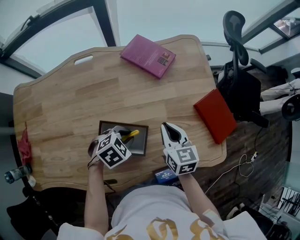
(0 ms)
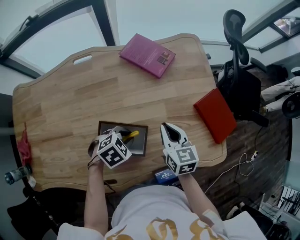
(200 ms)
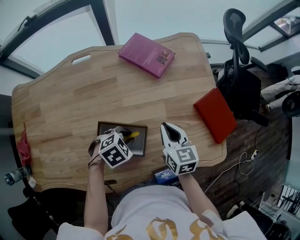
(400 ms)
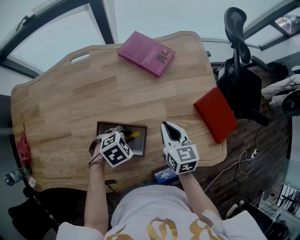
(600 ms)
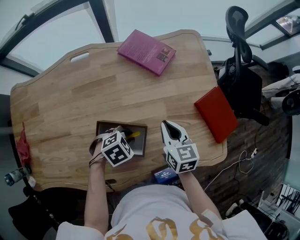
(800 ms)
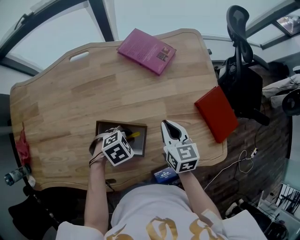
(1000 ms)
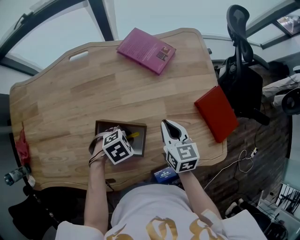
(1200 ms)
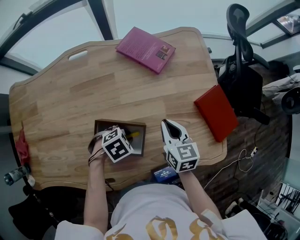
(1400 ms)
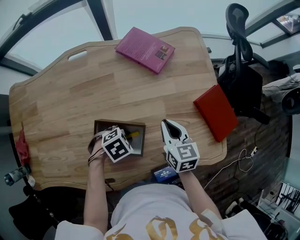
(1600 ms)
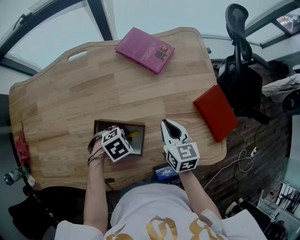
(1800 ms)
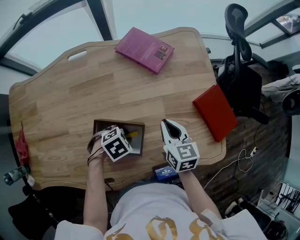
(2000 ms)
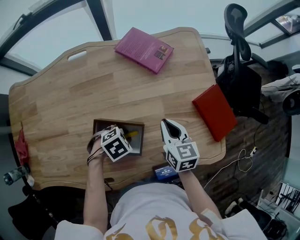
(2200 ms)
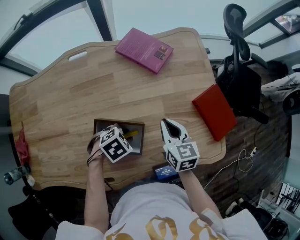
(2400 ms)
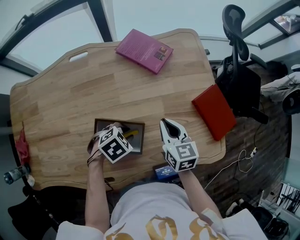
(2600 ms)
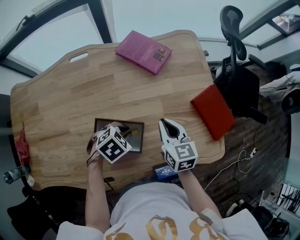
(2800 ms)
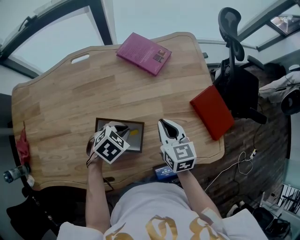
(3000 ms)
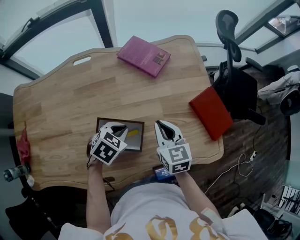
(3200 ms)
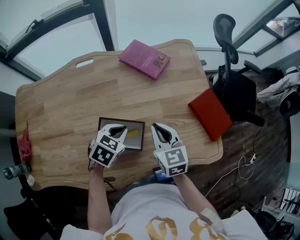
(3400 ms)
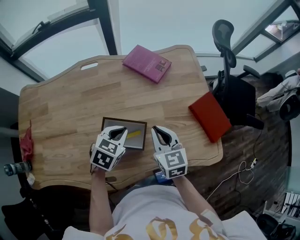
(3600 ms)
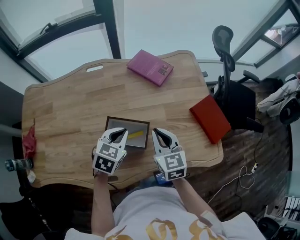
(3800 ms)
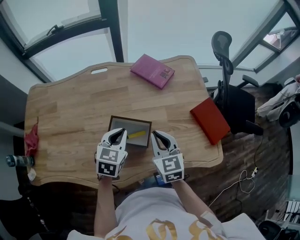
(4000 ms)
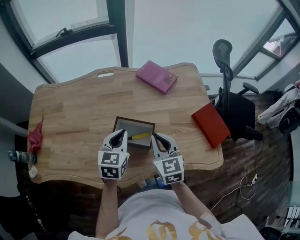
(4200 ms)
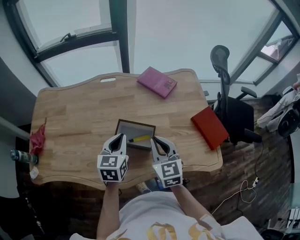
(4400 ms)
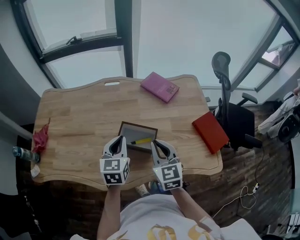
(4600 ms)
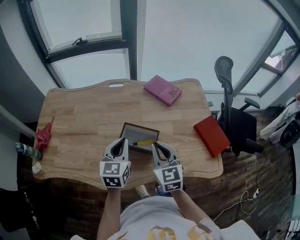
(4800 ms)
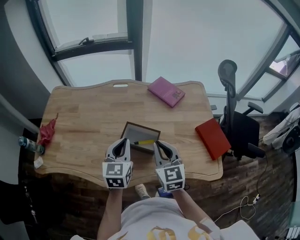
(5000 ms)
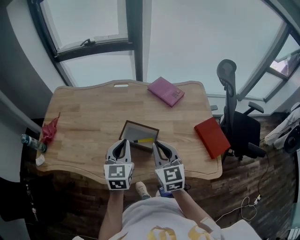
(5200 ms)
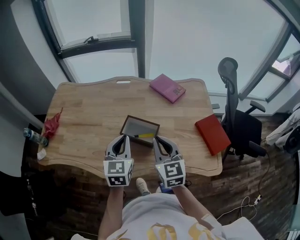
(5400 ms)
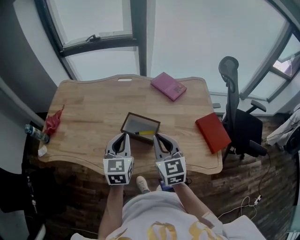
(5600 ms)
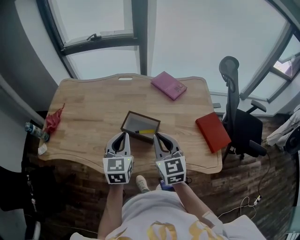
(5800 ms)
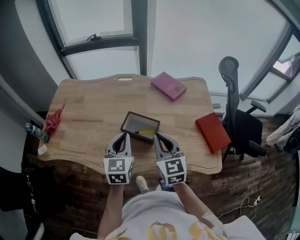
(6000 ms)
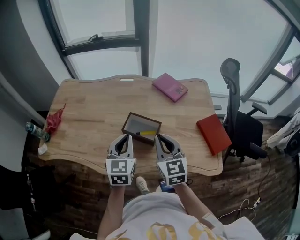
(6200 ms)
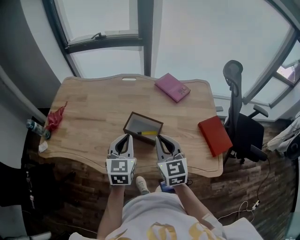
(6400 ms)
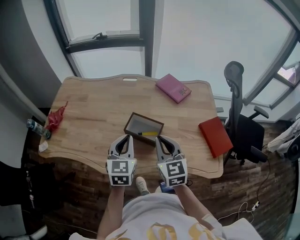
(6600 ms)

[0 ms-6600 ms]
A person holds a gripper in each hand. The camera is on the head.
0 ms to 1600 ms: There are only small adjustments of the grippers.
1600 ms to 3200 ms: The right gripper ends up approximately 5 cm from where it was; the left gripper is displaced upward by some 5 cm, and swivels approximately 30 degrees.
3200 ms to 5000 ms: The left gripper heads upward, covering some 20 cm, and tilts its fingers roughly 40 degrees upward. Meanwhile the right gripper shifts by approximately 20 cm, and turns by roughly 20 degrees.
5000 ms to 6600 ms: The left gripper heads backward, covering roughly 5 cm.

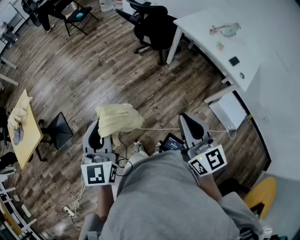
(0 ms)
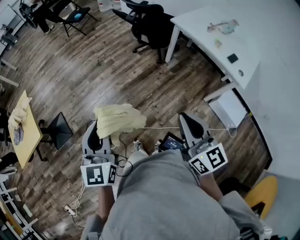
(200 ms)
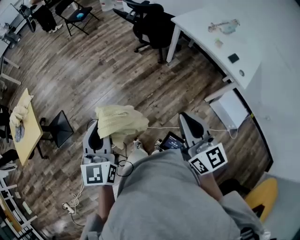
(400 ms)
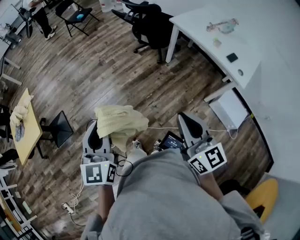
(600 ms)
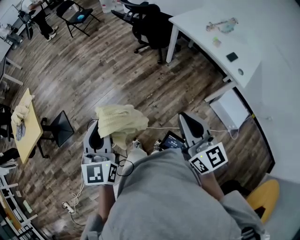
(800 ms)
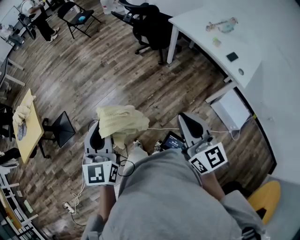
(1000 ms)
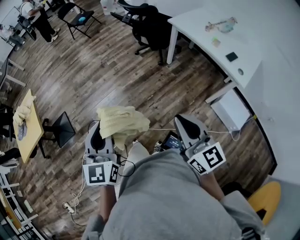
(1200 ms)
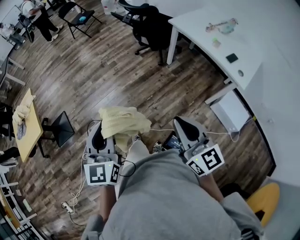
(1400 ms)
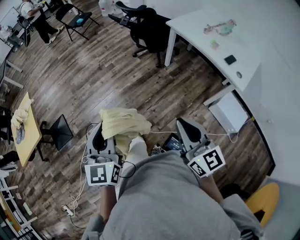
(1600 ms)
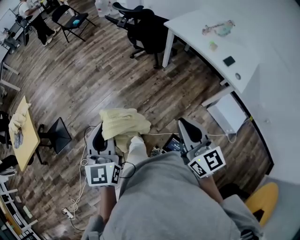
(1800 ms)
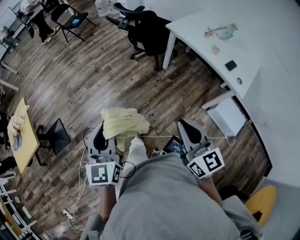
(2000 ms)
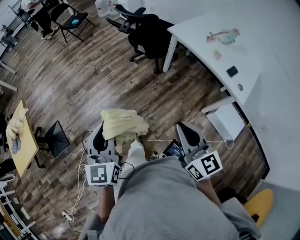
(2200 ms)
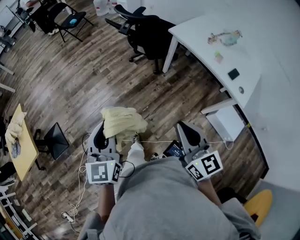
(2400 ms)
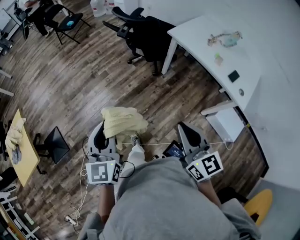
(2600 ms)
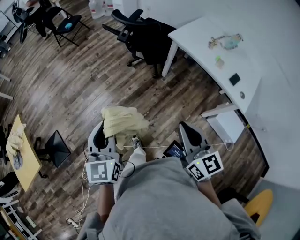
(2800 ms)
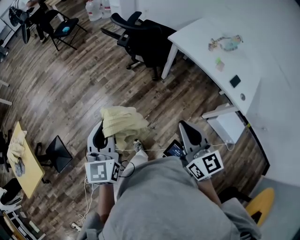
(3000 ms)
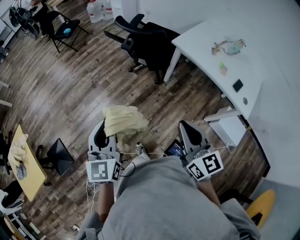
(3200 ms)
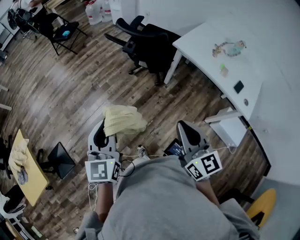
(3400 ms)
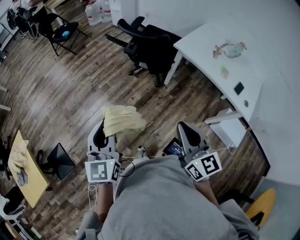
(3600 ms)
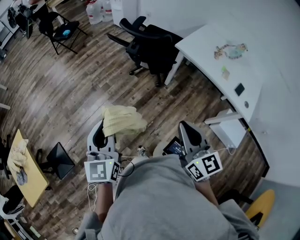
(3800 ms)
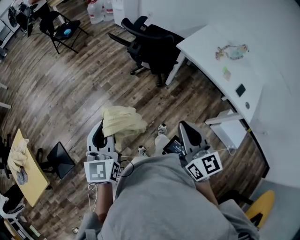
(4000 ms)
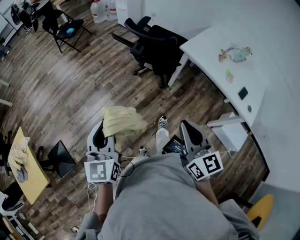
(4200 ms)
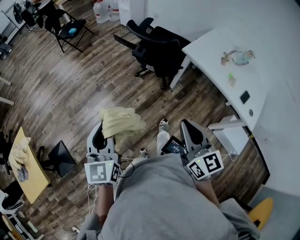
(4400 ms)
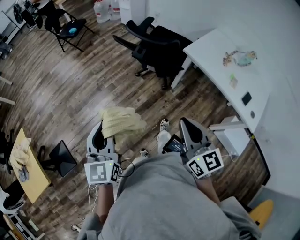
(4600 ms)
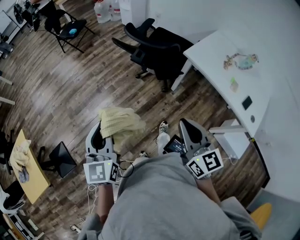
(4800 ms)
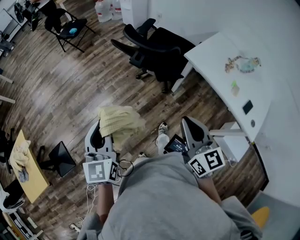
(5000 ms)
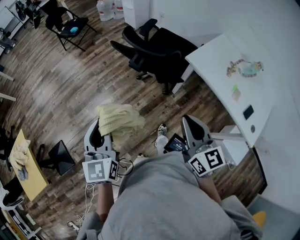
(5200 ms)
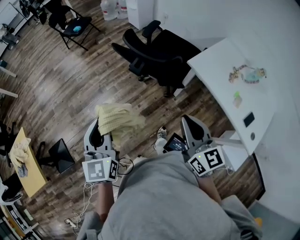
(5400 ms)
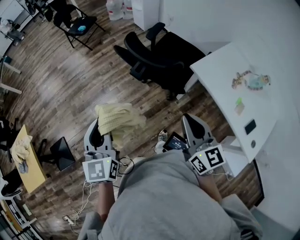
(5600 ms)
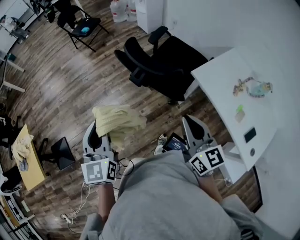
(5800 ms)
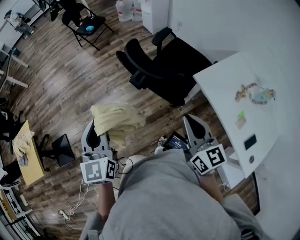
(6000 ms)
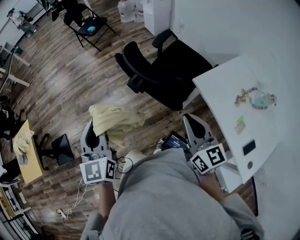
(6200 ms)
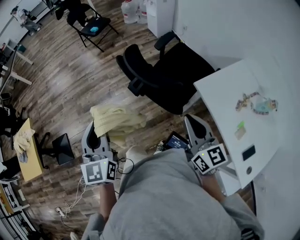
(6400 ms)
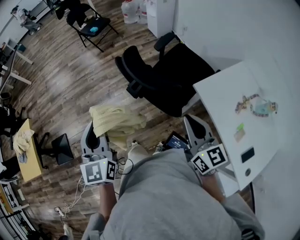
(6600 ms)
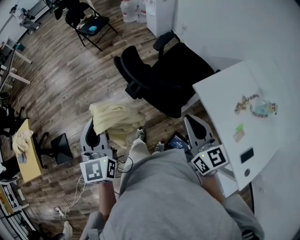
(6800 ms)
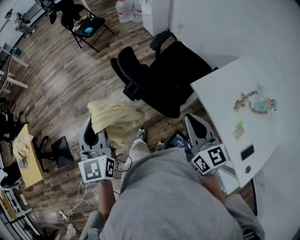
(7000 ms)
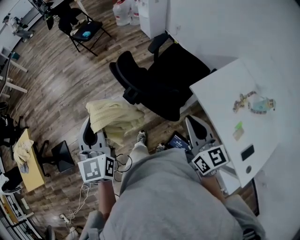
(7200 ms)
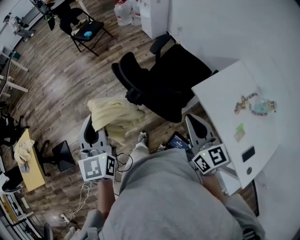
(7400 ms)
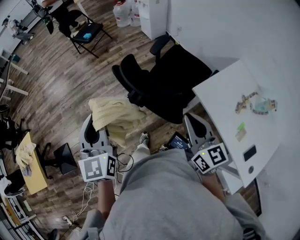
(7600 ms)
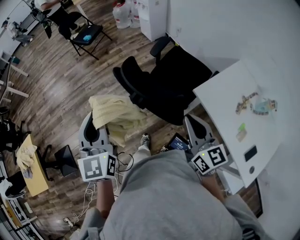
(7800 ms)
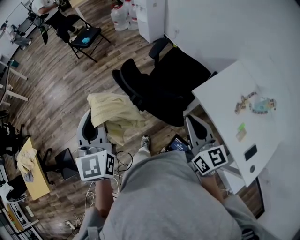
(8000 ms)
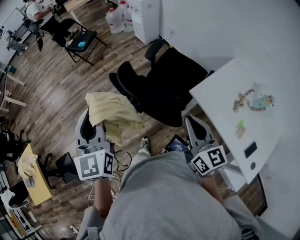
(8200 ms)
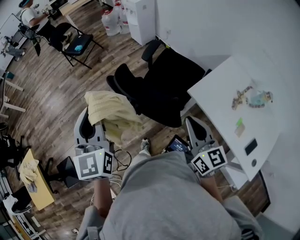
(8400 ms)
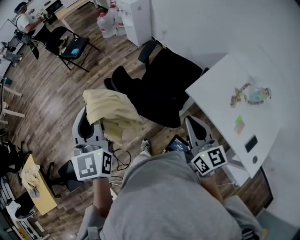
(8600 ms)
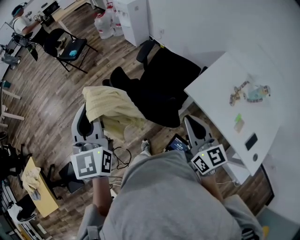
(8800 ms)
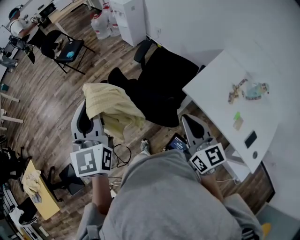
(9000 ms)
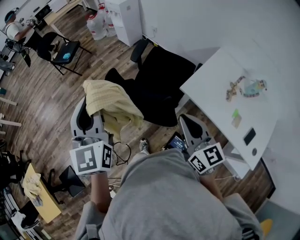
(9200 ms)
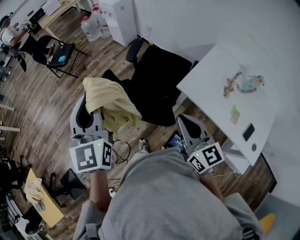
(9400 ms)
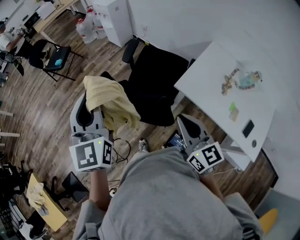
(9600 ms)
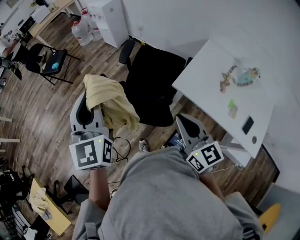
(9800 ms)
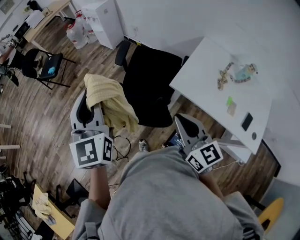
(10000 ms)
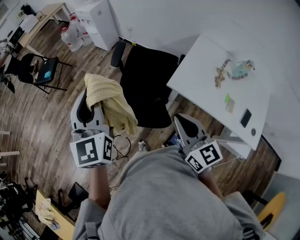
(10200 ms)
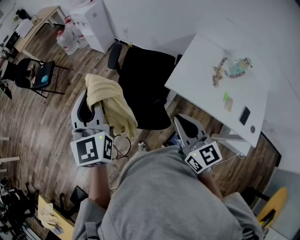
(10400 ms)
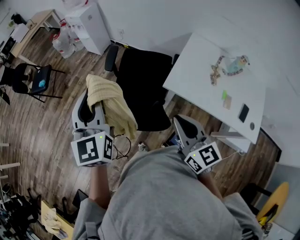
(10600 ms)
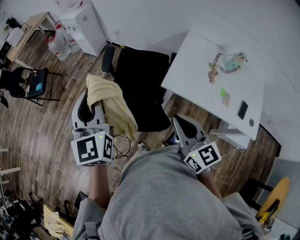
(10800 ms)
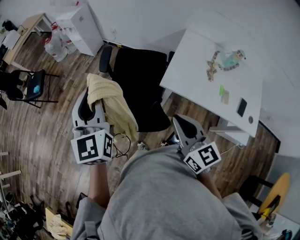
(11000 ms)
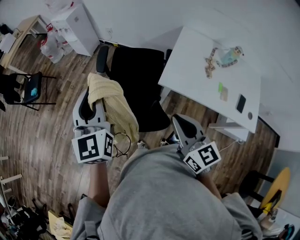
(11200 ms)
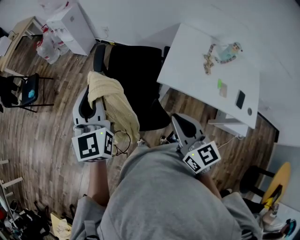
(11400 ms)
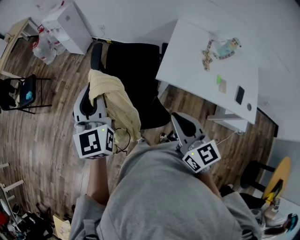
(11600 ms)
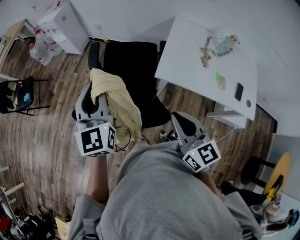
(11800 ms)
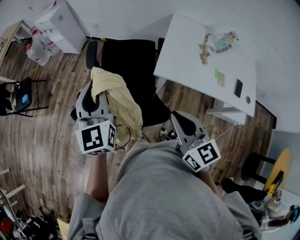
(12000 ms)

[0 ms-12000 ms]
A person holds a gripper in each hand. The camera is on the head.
0 ms to 1600 ms: The grippers both shift to the right by roughly 10 cm.
1600 ms to 3000 ms: Both grippers travel together forward, some 25 cm.
3000 ms to 4400 ms: The grippers both shift forward and to the left by approximately 10 cm.
4400 ms to 6000 ms: Both grippers move forward and to the right, roughly 25 cm.
6000 ms to 7600 ms: The left gripper heads forward and to the right, covering approximately 10 cm; the right gripper is displaced forward by roughly 10 cm.
7600 ms to 9000 ms: The left gripper heads forward and upward, covering about 10 cm.
9000 ms to 10400 ms: The left gripper is displaced forward and to the right by about 15 cm.
10400 ms to 12000 ms: The left gripper heads forward and downward, covering roughly 10 cm.

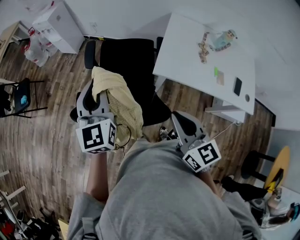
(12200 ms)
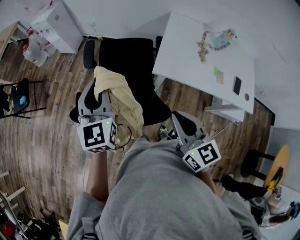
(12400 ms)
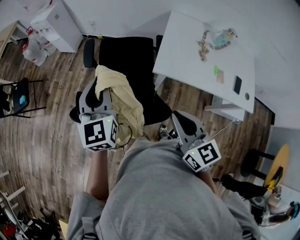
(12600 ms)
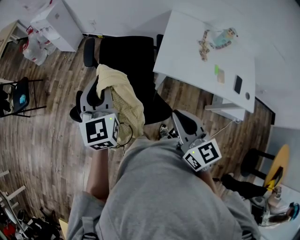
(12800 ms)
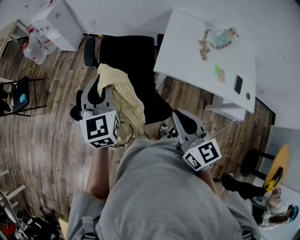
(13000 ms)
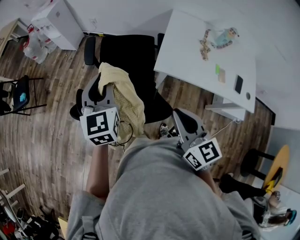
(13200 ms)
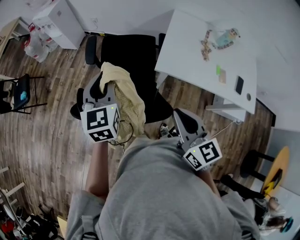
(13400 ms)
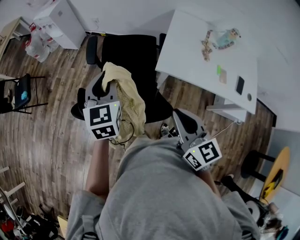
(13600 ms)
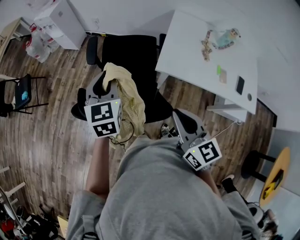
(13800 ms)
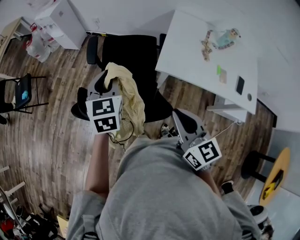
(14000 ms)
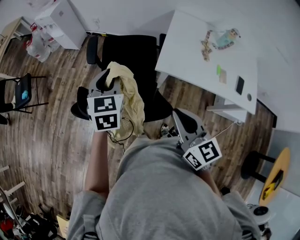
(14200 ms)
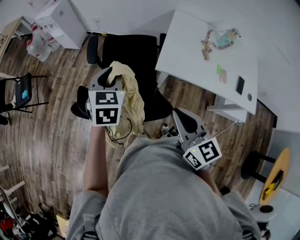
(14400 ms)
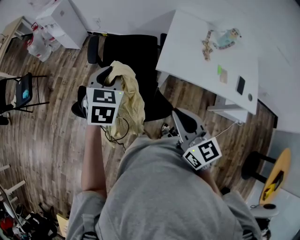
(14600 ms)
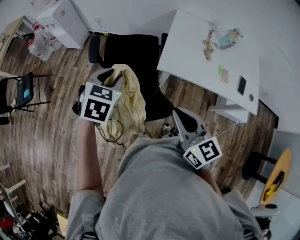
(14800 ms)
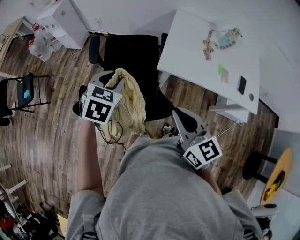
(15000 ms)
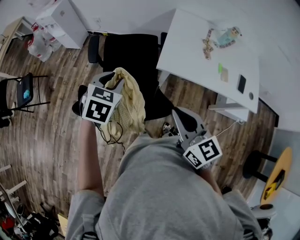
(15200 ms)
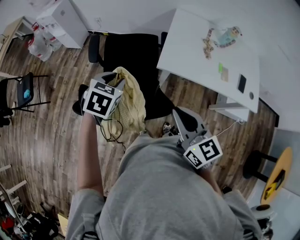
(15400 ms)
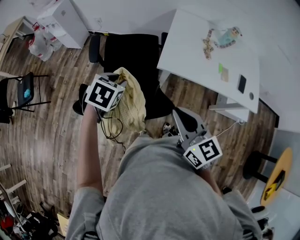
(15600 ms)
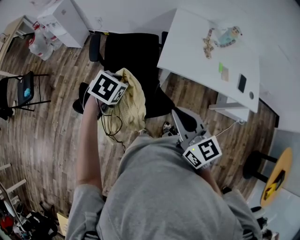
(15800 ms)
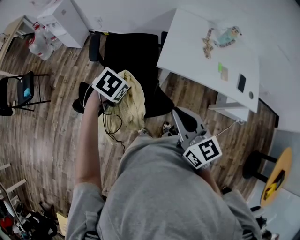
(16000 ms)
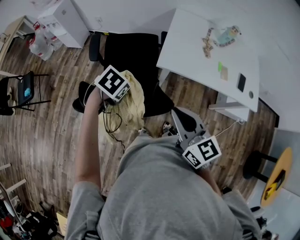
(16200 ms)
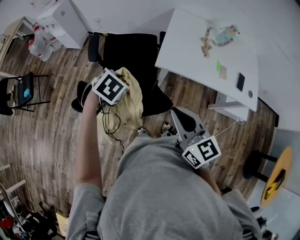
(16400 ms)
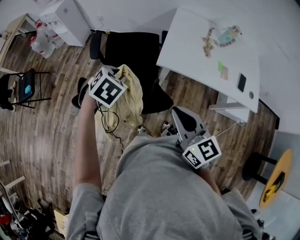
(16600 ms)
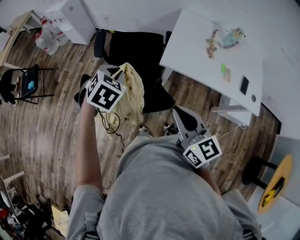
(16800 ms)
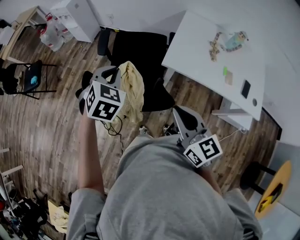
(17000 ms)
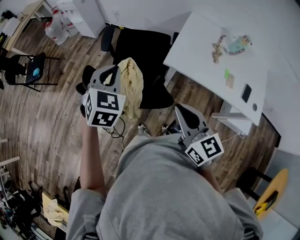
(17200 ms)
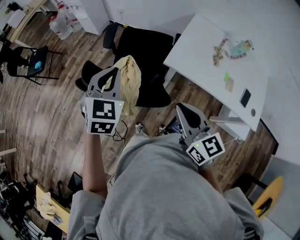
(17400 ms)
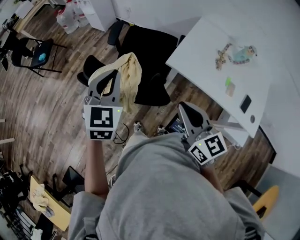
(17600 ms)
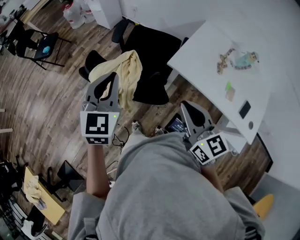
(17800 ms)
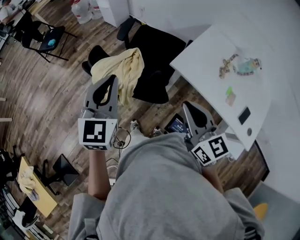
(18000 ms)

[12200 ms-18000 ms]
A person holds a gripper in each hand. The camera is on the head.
12200 ms to 13600 ms: The left gripper heads downward, covering about 5 cm.
13600 ms to 15000 ms: The left gripper travels downward by approximately 5 cm, and rotates approximately 40 degrees.
16600 ms to 18000 ms: The right gripper moves roughly 10 cm, and rotates some 20 degrees. Meanwhile the left gripper heads upward, covering roughly 15 cm, points its fingers some 50 degrees further upward, and closes its fingers.
